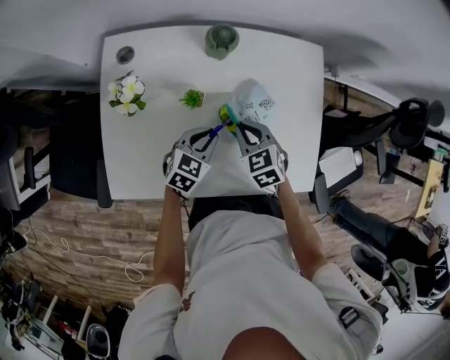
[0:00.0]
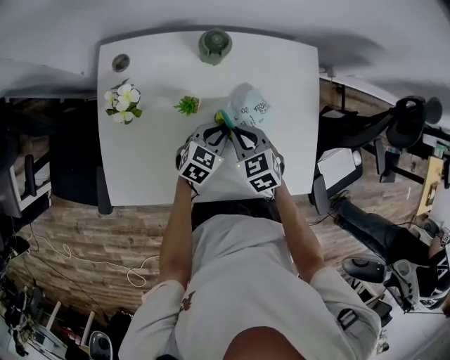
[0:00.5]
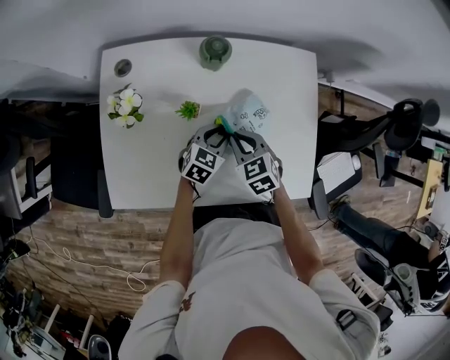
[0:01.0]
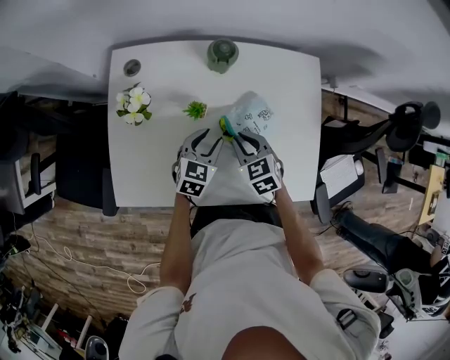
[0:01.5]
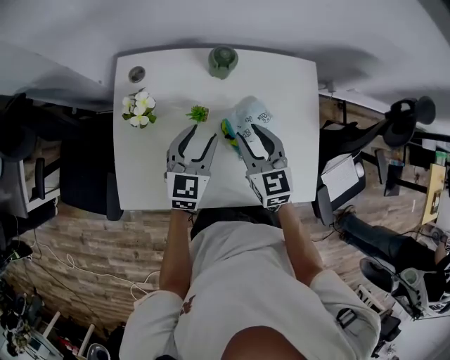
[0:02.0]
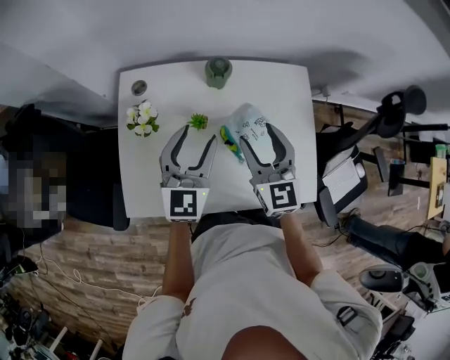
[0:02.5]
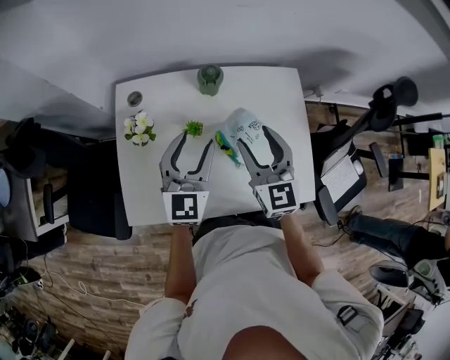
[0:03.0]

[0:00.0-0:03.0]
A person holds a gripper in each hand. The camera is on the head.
0:00.0 to 0:01.5: The left gripper opens up.
0:01.5 to 0:03.0: The two grippers go approximately 20 cm upward. The left gripper swivels approximately 30 degrees. Meanwhile the right gripper tips its fingers upward by roughly 40 degrees, and opens its fingers.

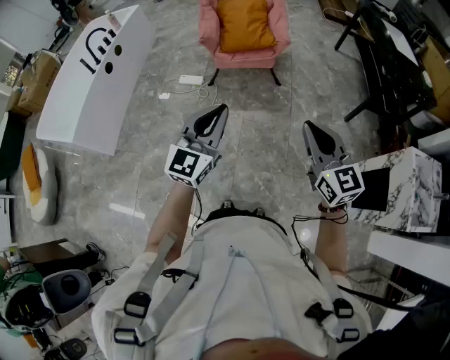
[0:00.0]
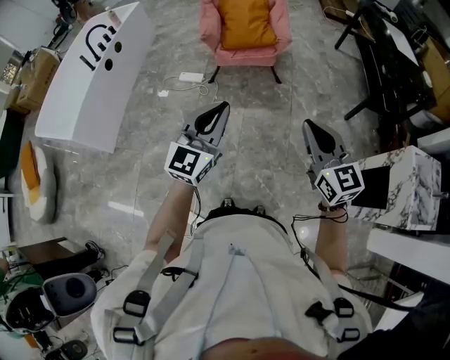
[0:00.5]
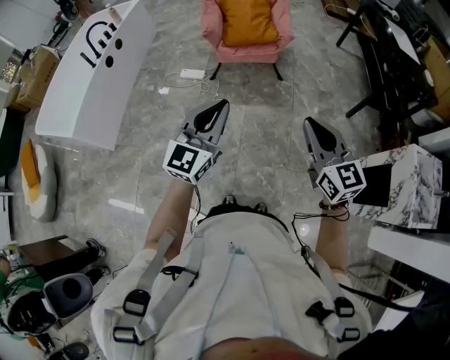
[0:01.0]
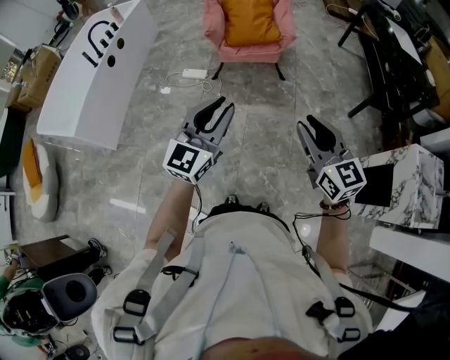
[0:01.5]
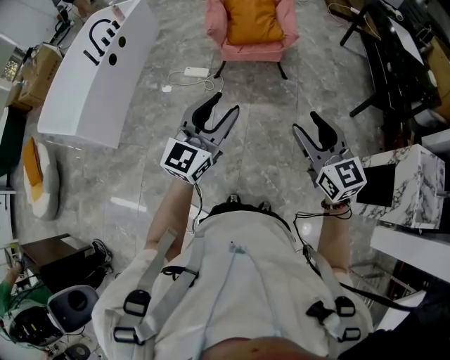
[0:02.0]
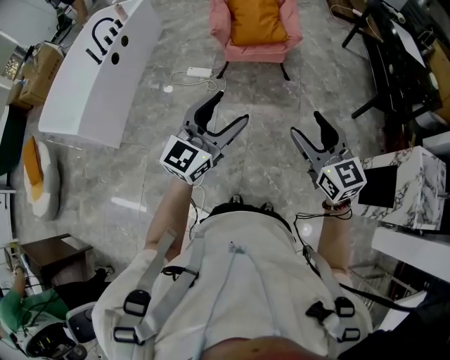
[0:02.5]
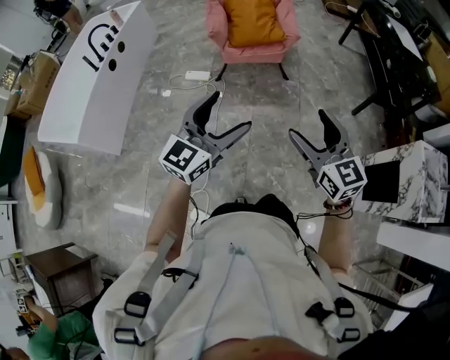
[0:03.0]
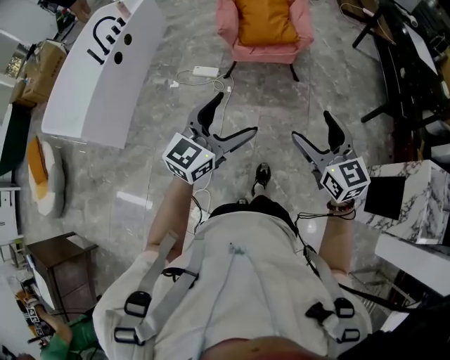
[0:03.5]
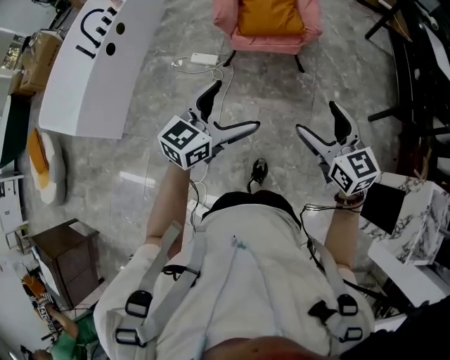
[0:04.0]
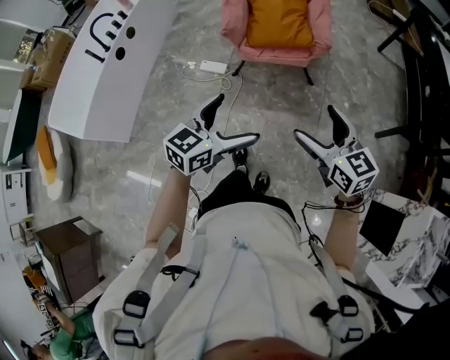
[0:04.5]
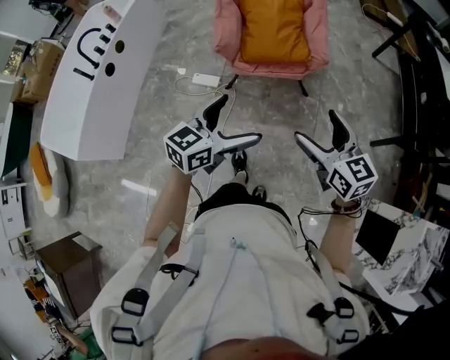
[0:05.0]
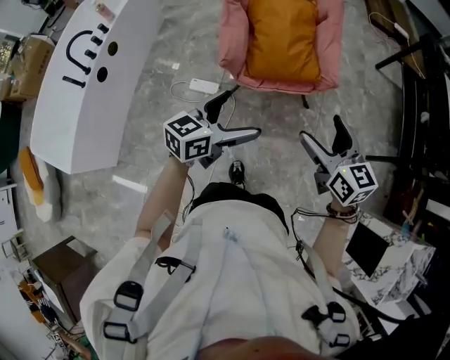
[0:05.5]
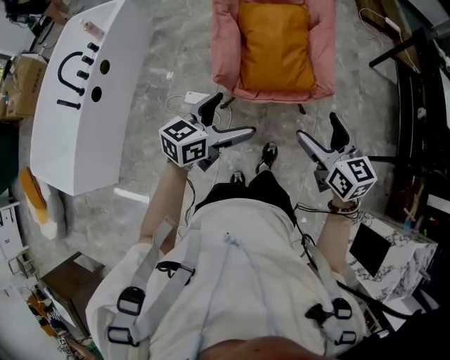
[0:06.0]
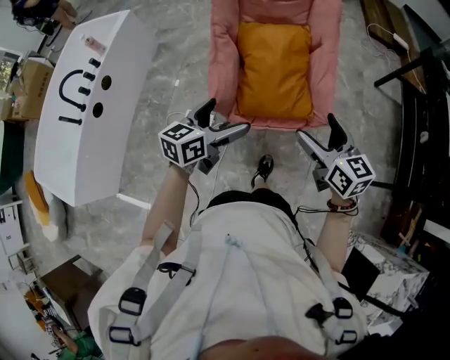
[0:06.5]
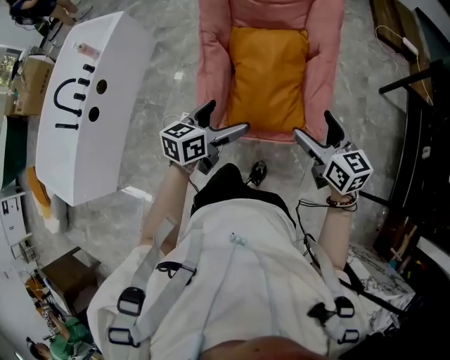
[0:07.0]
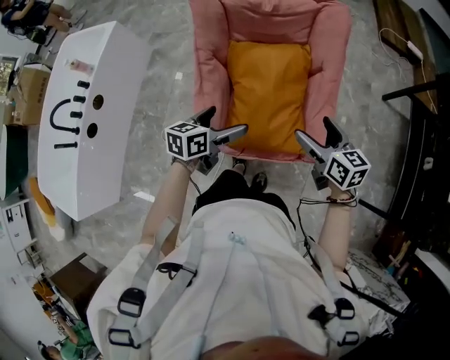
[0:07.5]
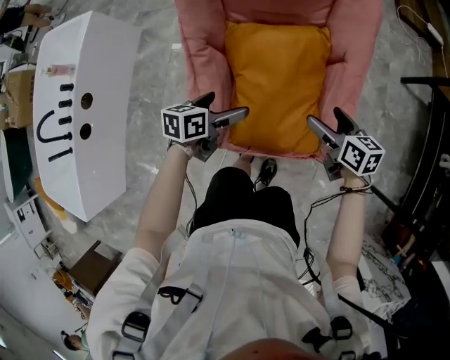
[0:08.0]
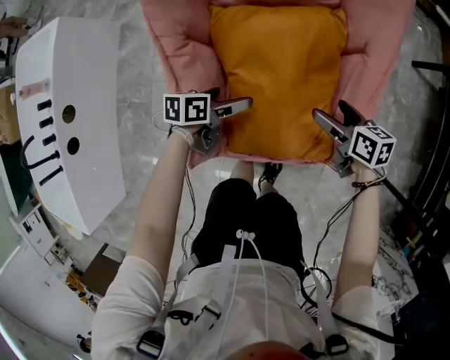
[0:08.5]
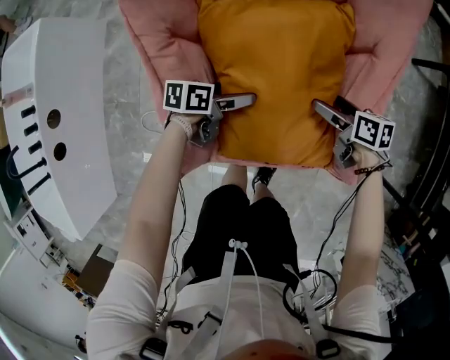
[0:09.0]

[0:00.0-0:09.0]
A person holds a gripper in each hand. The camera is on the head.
0:00.0 to 0:02.0: The right gripper moves to the left, approximately 5 cm, and opens up.
0:02.0 to 0:04.5: The right gripper moves forward, about 30 cm, and opens up, while the left gripper is displaced forward and downward by approximately 25 cm, rotates some 30 degrees, and opens up.
0:04.5 to 0:07.0: The pair of grippers is taken forward, some 60 cm. The left gripper turns by roughly 20 degrees.
0:07.0 to 0:09.0: The two grippers go some 40 cm downward. The left gripper turns by roughly 40 degrees, while the right gripper swivels approximately 40 degrees.

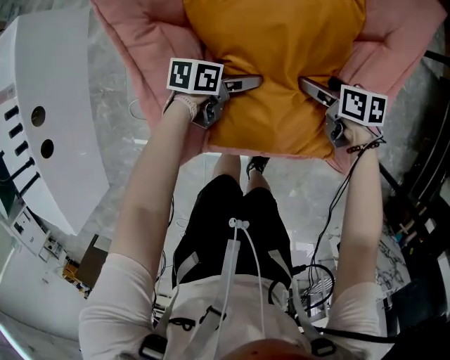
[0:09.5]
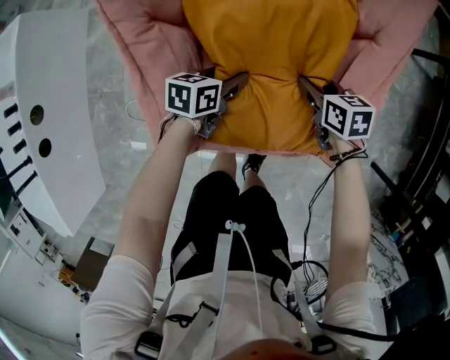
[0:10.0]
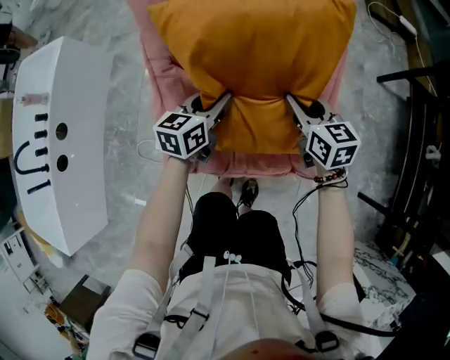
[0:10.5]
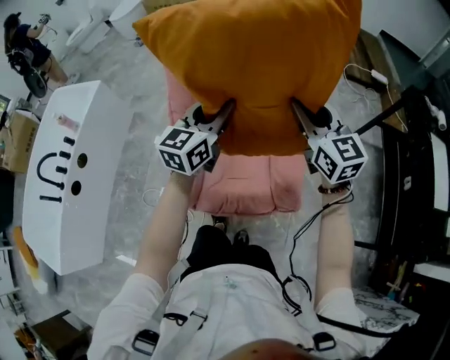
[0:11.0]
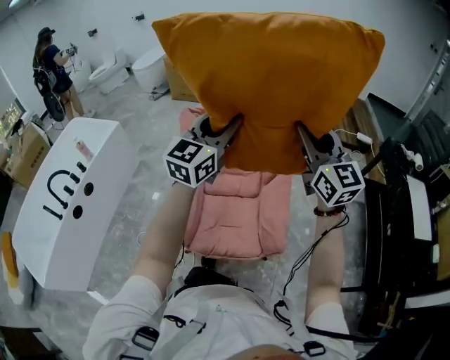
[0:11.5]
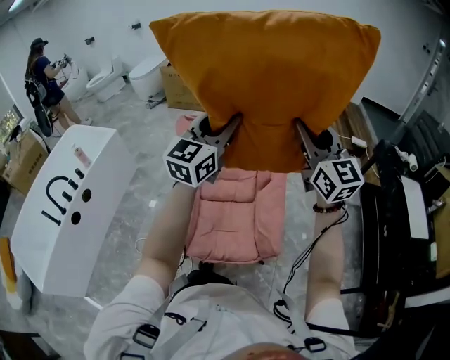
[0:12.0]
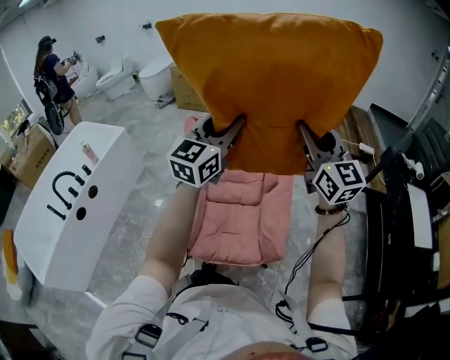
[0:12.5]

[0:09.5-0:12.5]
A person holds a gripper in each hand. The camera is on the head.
0:09.5 to 0:11.0: Both grippers move upward, about 60 cm. The left gripper angles its fingers upward, by some 40 degrees, and closes. Meanwhile the right gripper points its fingers some 40 degrees further upward, and closes up.
0:11.0 to 0:12.5: Both grippers move upward, about 20 cm. The left gripper swivels some 20 degrees; the right gripper turns by roughly 20 degrees.

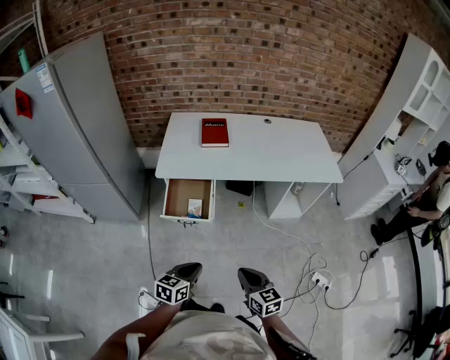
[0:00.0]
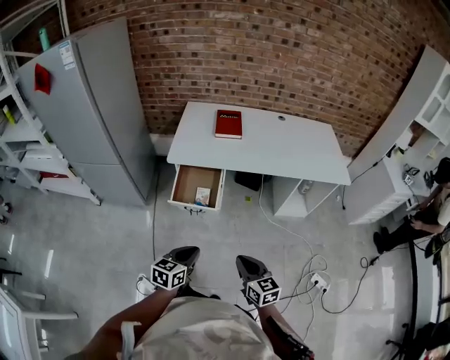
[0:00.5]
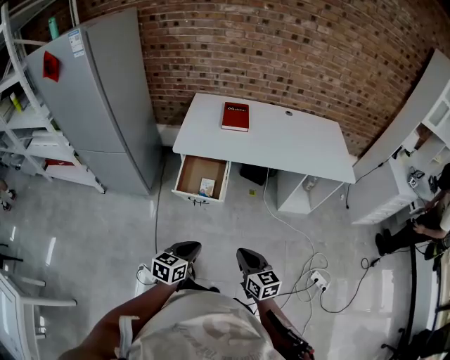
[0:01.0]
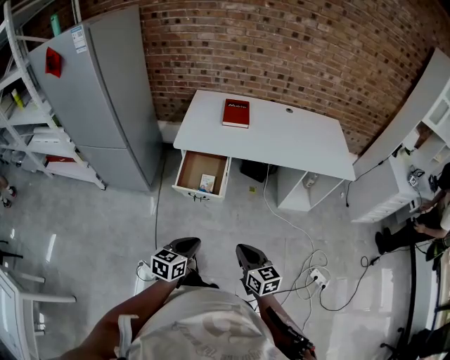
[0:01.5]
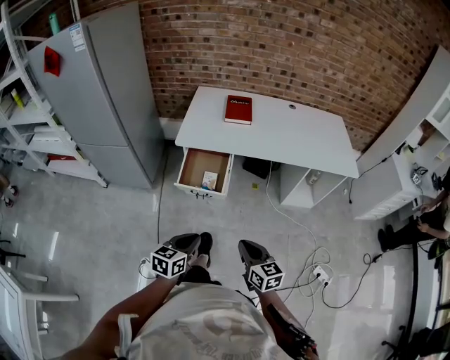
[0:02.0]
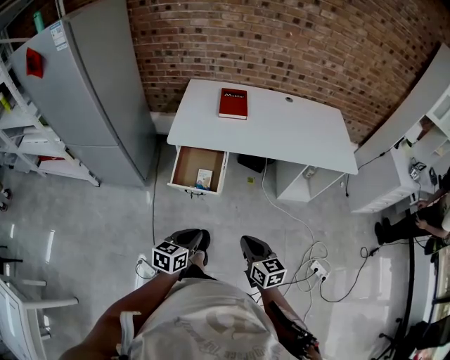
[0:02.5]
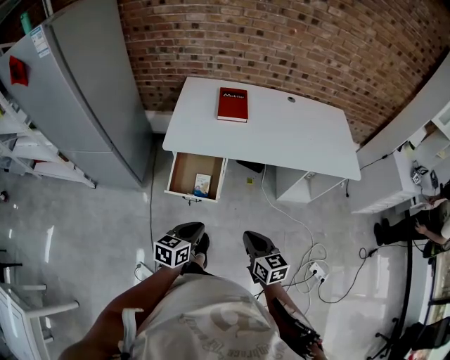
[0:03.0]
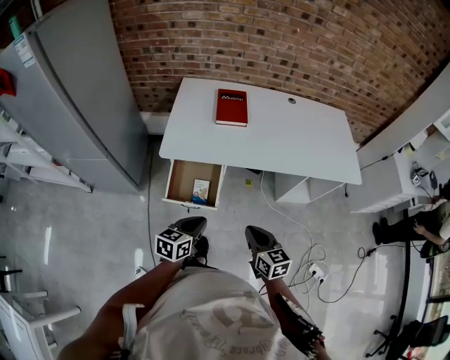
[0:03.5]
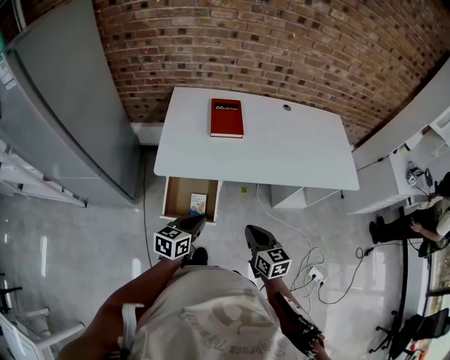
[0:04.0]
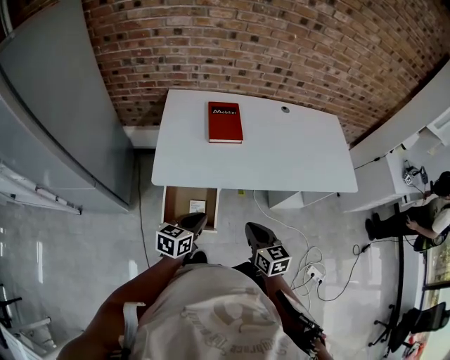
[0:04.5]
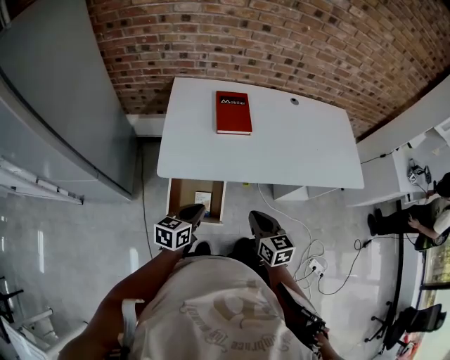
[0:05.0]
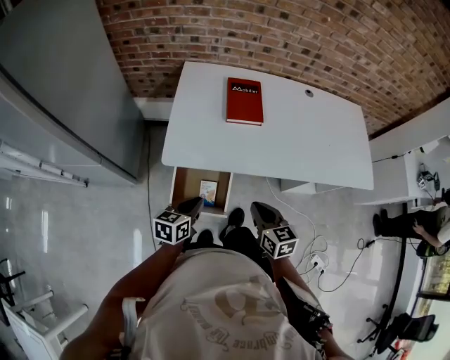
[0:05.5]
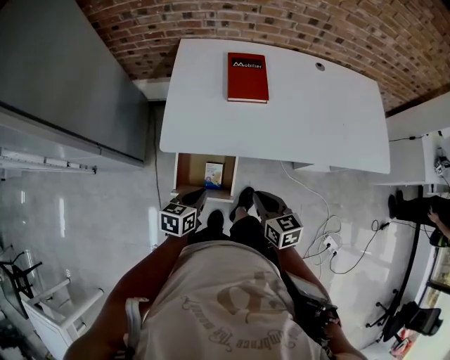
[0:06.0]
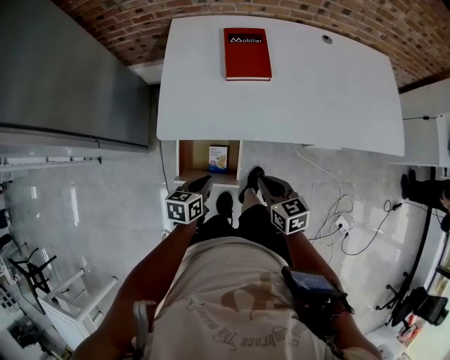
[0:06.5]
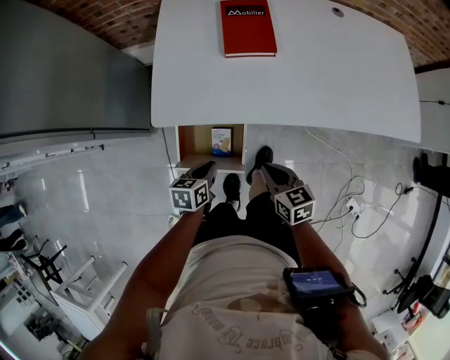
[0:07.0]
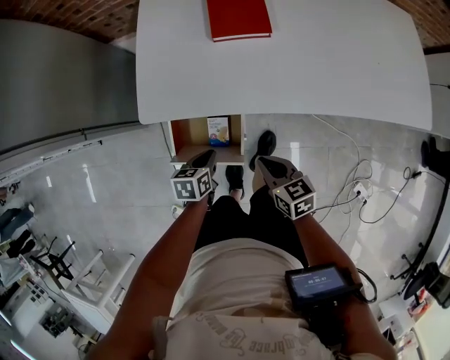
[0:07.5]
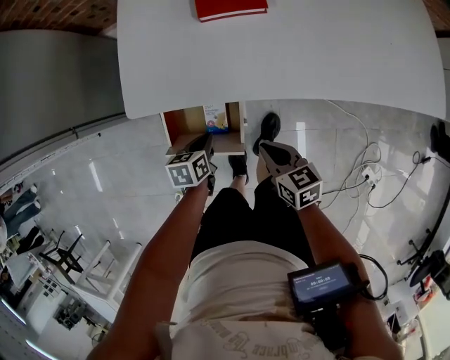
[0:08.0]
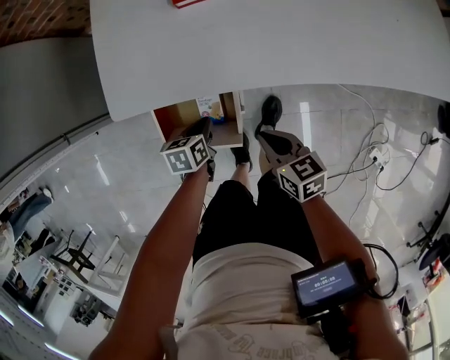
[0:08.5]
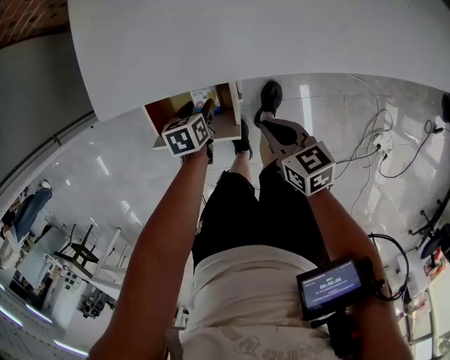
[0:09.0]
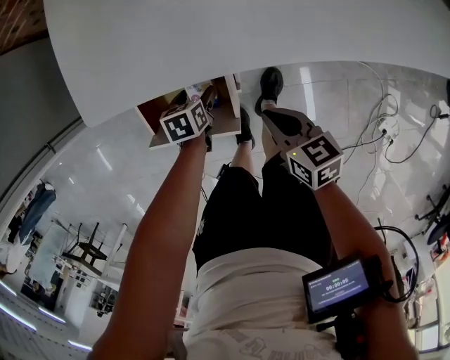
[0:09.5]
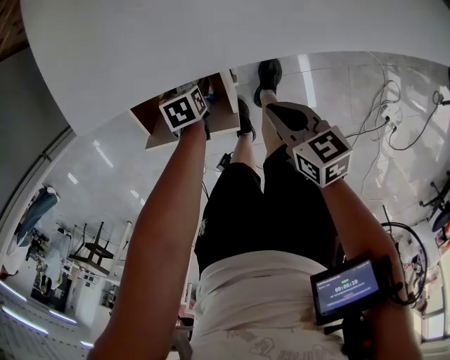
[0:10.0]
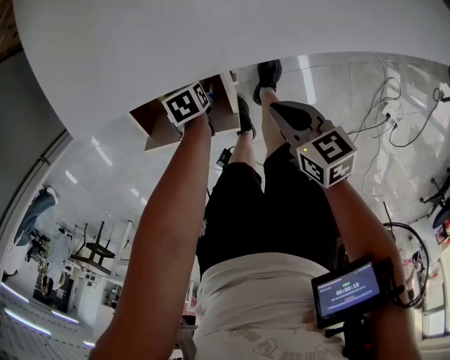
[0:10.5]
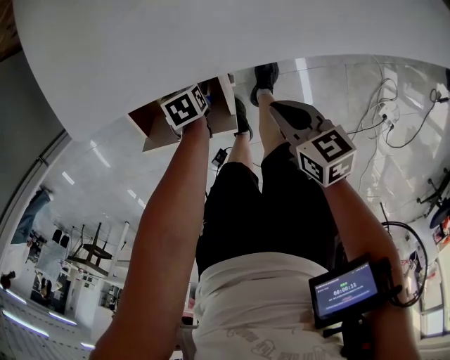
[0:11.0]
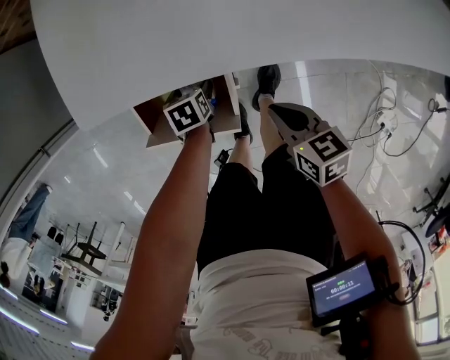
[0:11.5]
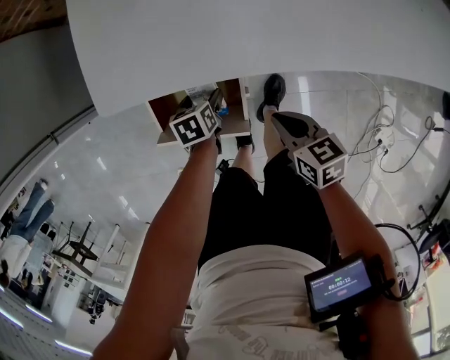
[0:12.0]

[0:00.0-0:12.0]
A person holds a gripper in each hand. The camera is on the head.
0:00.0 to 0:02.0: The grippers move only a little.
0:02.0 to 0:04.0: Both grippers move forward, about 30 cm.
0:04.0 to 0:06.0: The right gripper moves forward, downward and to the left, approximately 15 cm; the left gripper travels downward, forward and to the left by some 15 cm.
0:06.0 to 0:08.0: Both grippers travel together downward, some 15 cm. The left gripper rotates some 20 degrees.
0:08.0 to 0:10.0: The left gripper goes roughly 15 cm downward, changes its angle by roughly 20 degrees, and opens, while the right gripper is displaced downward by about 10 cm.
0:10.0 to 0:12.0: The left gripper is displaced upward by some 5 cm.
